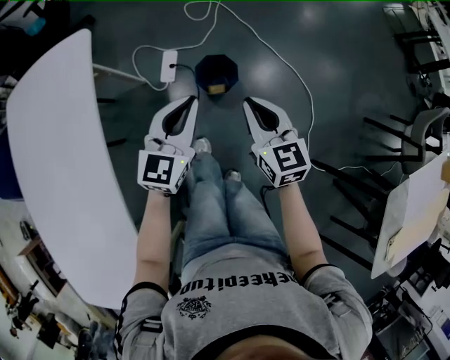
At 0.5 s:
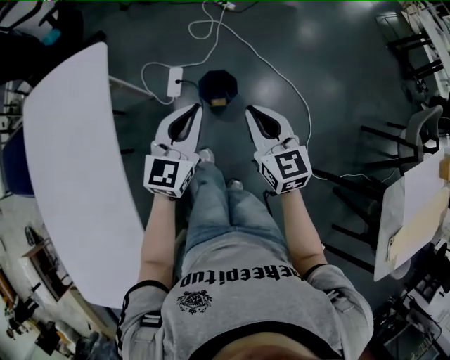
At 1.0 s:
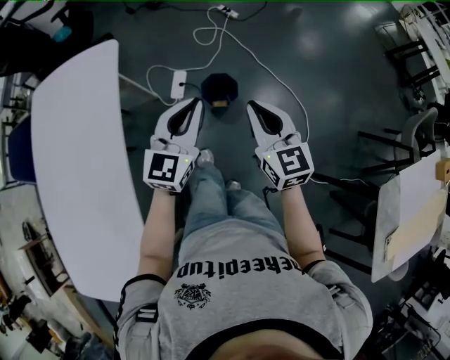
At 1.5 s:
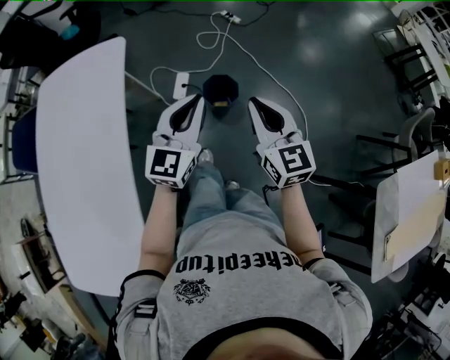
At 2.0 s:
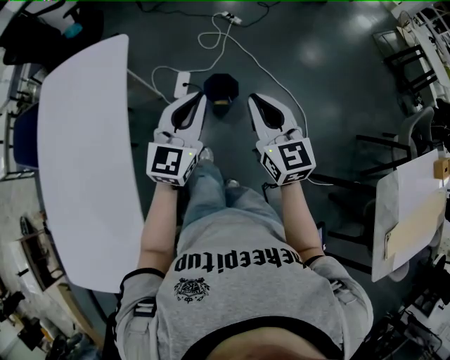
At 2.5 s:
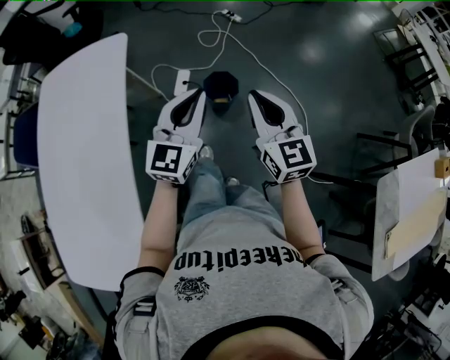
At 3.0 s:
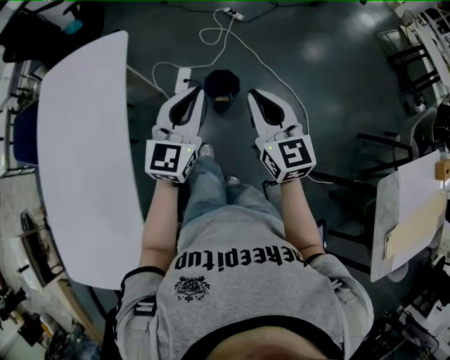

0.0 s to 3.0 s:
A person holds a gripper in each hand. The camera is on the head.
0.0 to 1.5 s: Both grippers move upward and backward, about 15 cm.
1.5 to 3.0 s: The grippers make only small movements.

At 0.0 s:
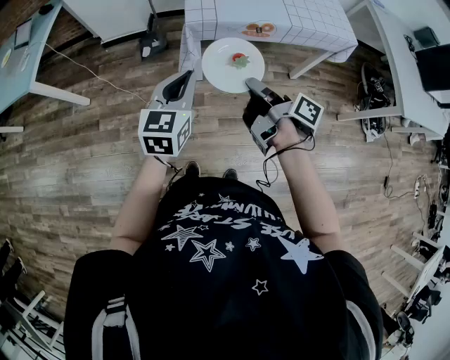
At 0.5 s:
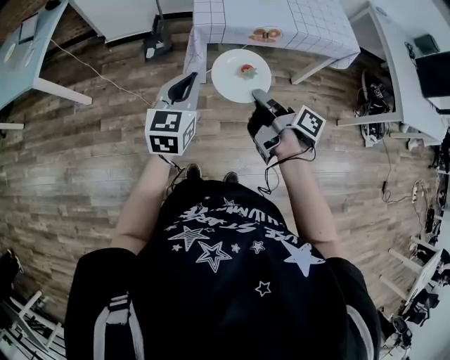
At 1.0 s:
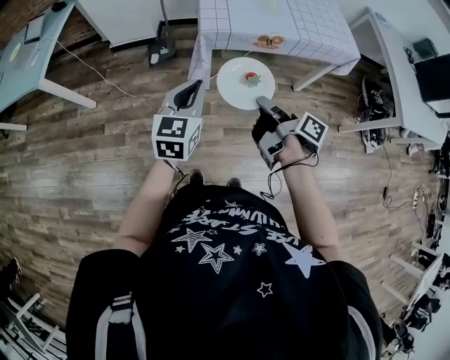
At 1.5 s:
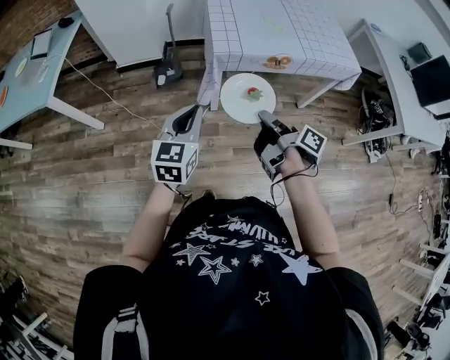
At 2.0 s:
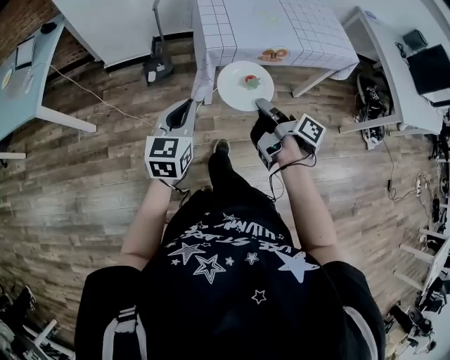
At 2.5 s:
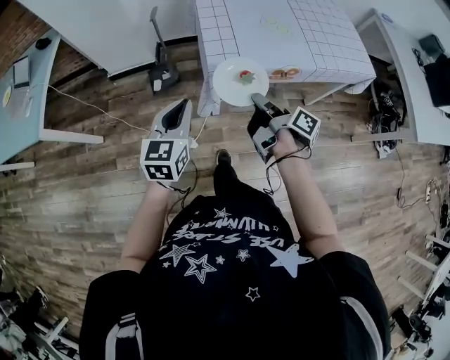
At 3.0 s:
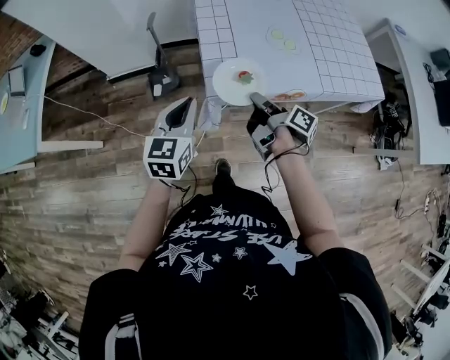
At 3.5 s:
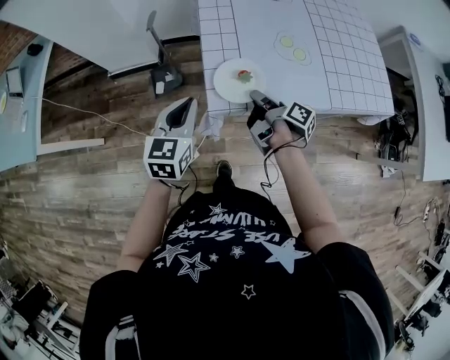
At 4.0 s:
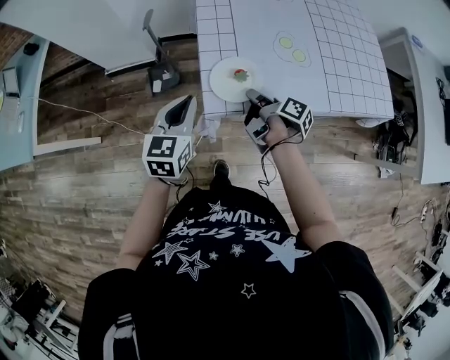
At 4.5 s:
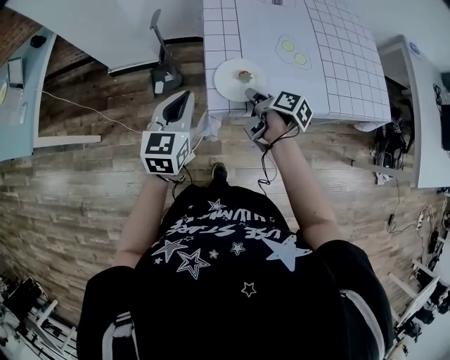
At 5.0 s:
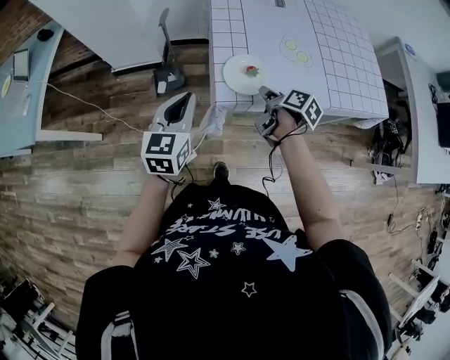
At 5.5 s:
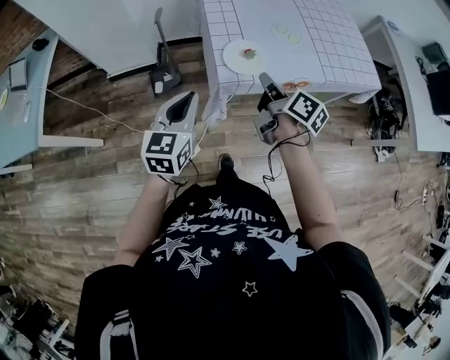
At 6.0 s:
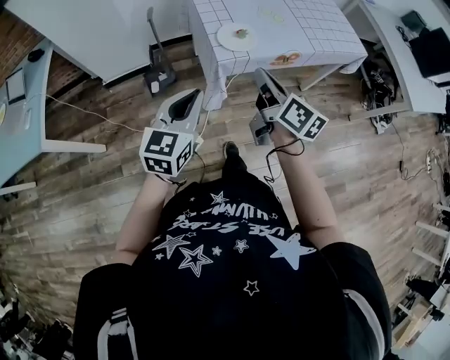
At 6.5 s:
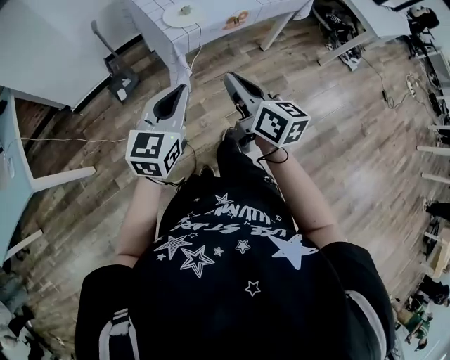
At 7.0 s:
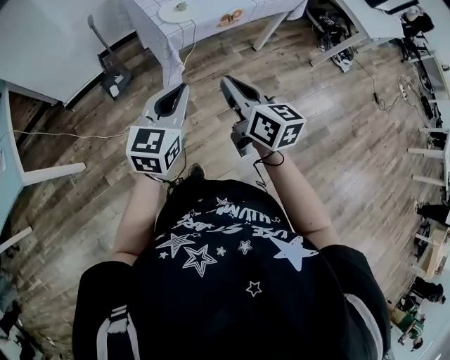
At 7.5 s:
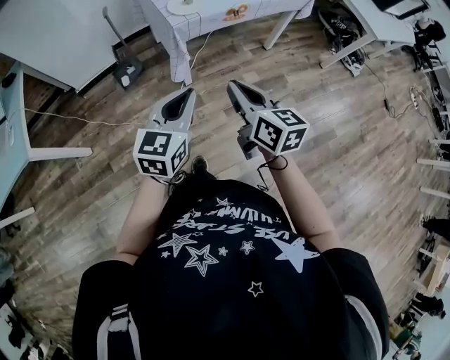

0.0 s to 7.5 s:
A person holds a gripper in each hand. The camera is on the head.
0.0 to 2.0 s: The left gripper moves some 10 cm.
2.0 to 4.0 s: The left gripper moves some 25 cm.
4.0 to 5.5 s: The left gripper shifts by some 10 cm.
5.5 to 7.5 s: The left gripper ends up roughly 25 cm from where it was, and changes its angle by some 20 degrees.

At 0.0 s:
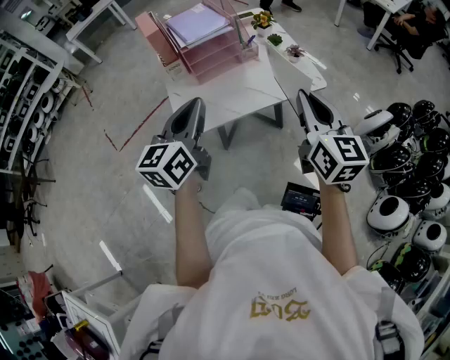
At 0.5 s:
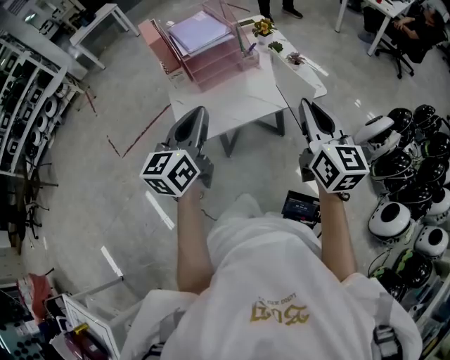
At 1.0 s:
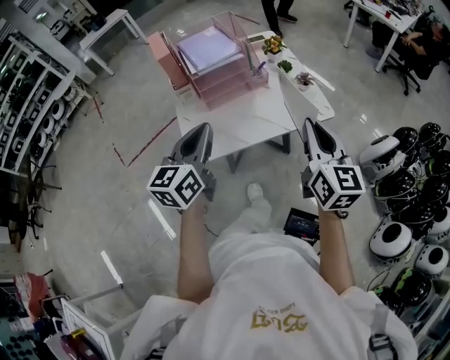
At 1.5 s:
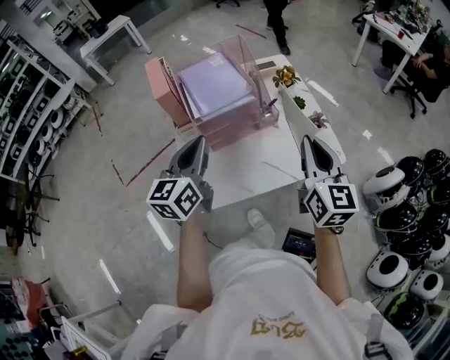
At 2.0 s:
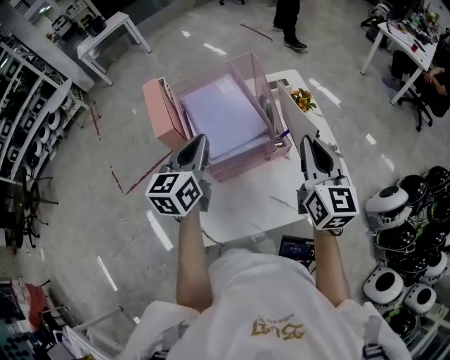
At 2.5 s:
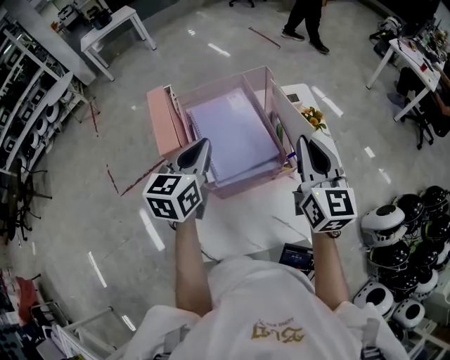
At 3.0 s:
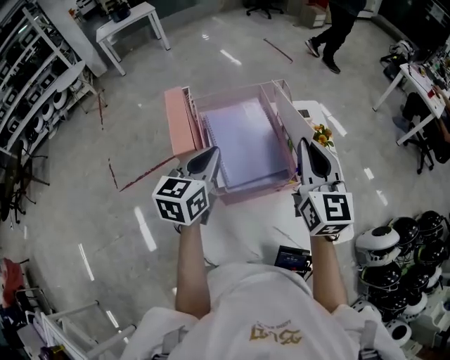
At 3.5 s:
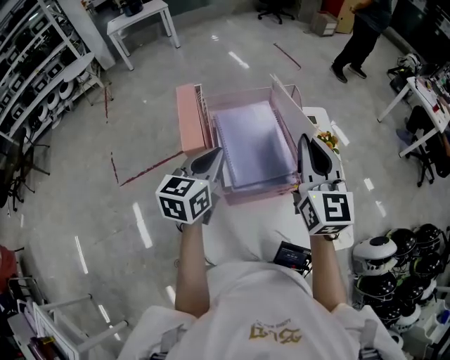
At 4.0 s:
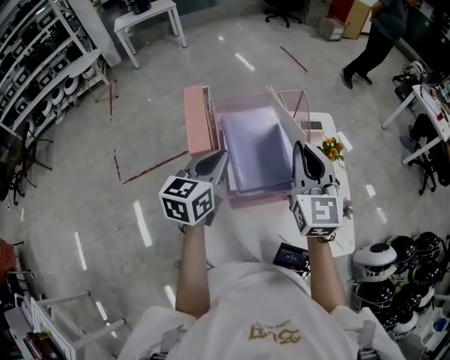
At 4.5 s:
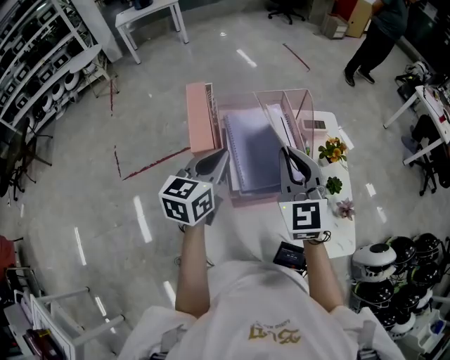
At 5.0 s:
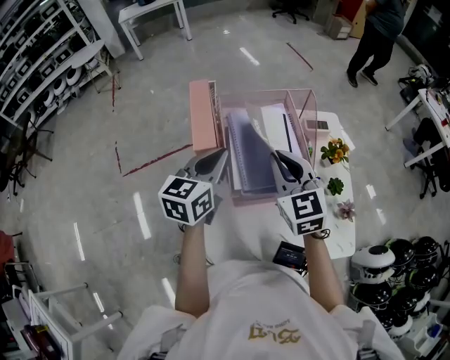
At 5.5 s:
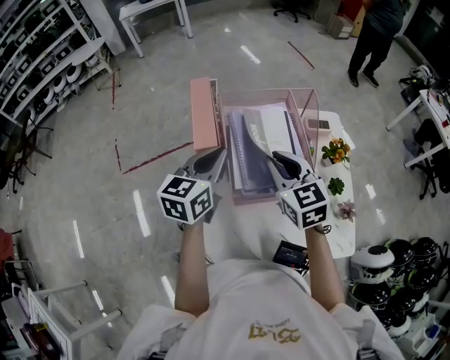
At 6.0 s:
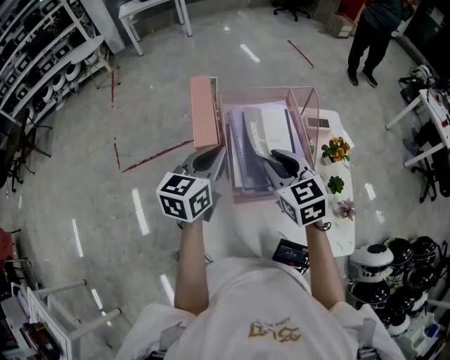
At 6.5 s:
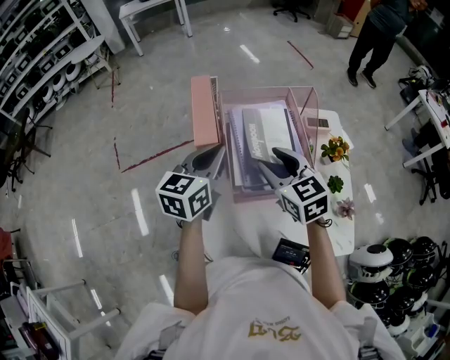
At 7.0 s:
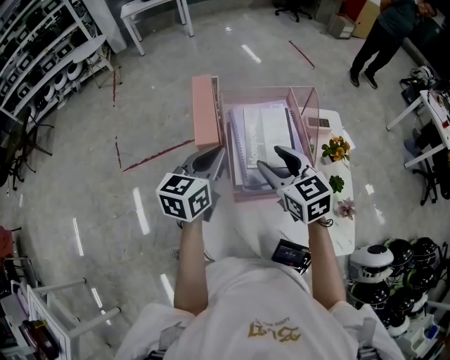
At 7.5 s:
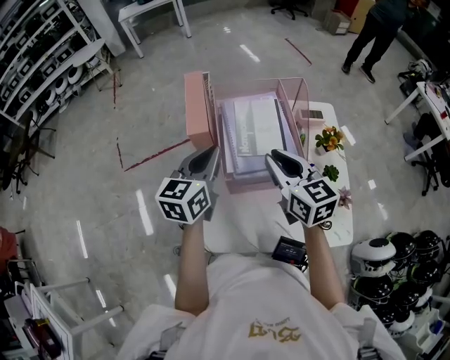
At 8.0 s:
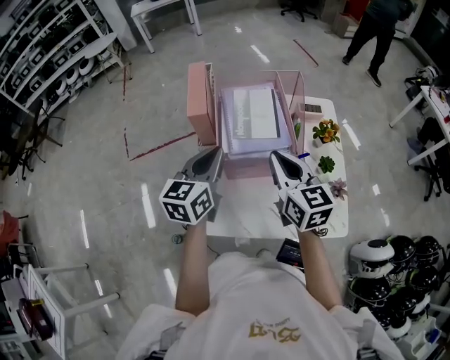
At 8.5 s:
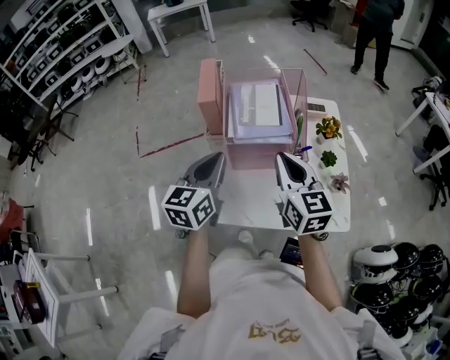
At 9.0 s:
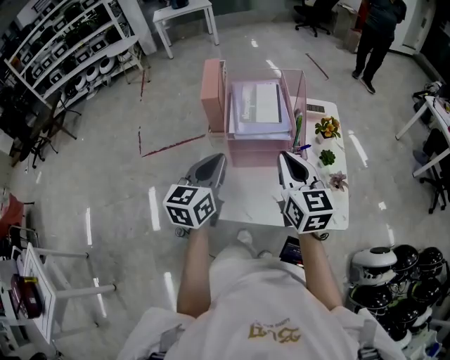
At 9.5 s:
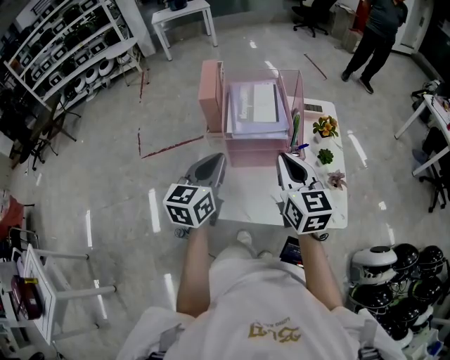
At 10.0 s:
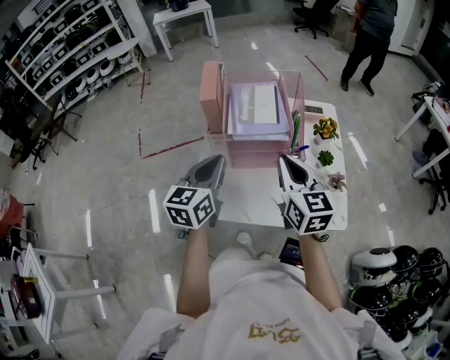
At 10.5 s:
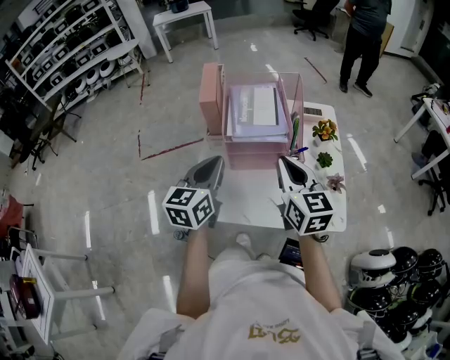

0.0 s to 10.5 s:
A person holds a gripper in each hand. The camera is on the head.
0.0 to 2.0 s: Both grippers travel together forward, approximately 35 cm.
2.0 to 4.0 s: The left gripper travels to the left by about 5 cm. Meanwhile the right gripper moves to the left and forward, roughly 20 cm, and rotates approximately 20 degrees.
4.0 to 6.5 s: The right gripper shifts some 15 cm downward and to the left, rotates some 30 degrees, and opens up.
6.5 to 8.5 s: The left gripper heads backward, covering about 20 cm. Meanwhile the right gripper travels backward and to the right by about 20 cm, turns by roughly 20 degrees, and closes up.
8.5 to 10.5 s: There are only small adjustments of the grippers.

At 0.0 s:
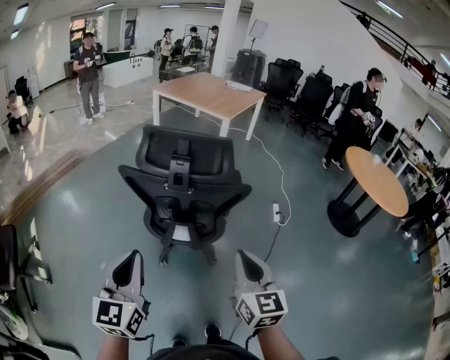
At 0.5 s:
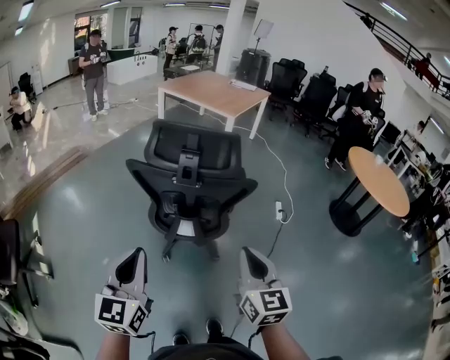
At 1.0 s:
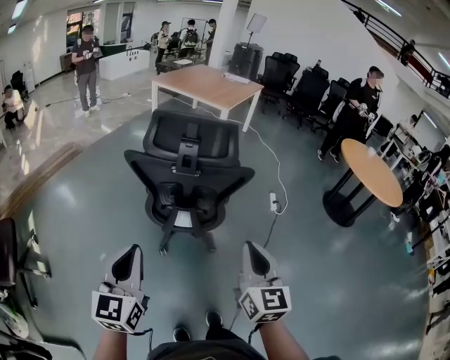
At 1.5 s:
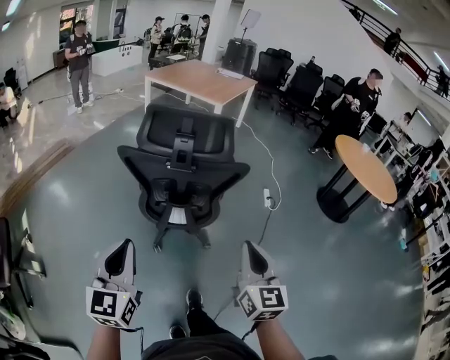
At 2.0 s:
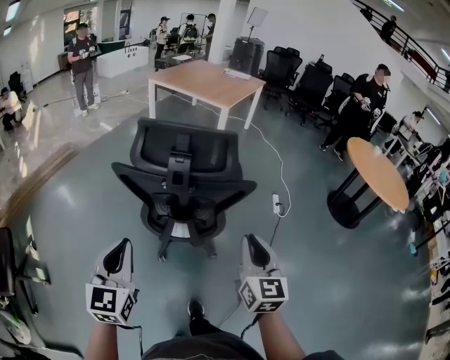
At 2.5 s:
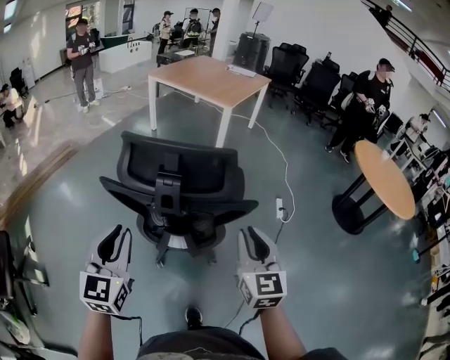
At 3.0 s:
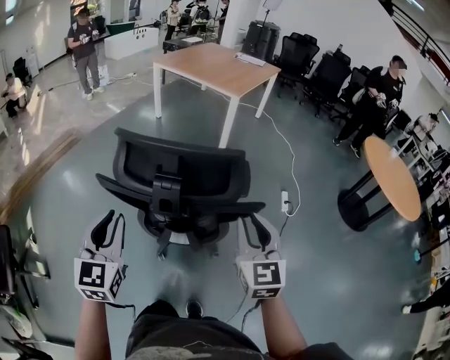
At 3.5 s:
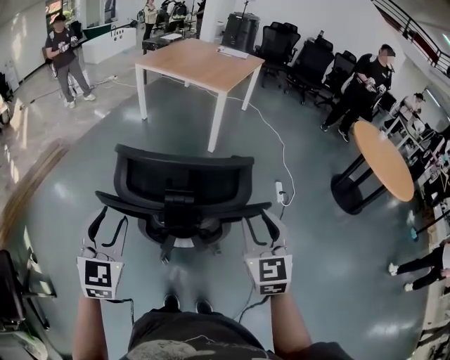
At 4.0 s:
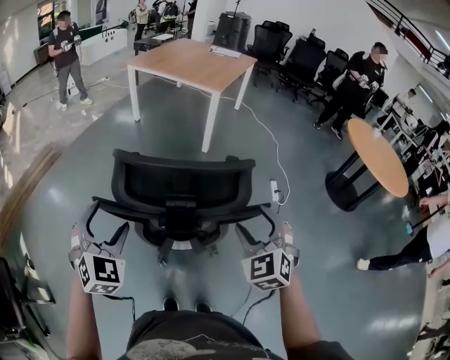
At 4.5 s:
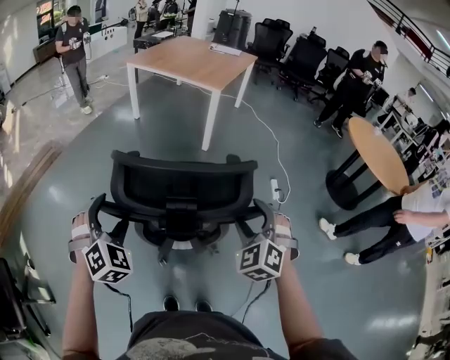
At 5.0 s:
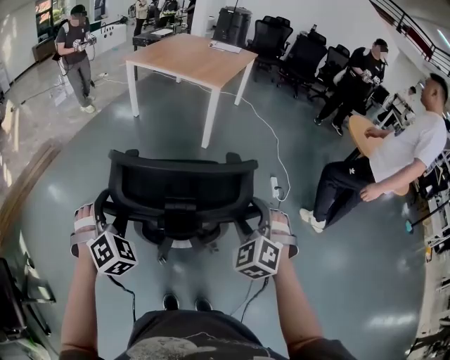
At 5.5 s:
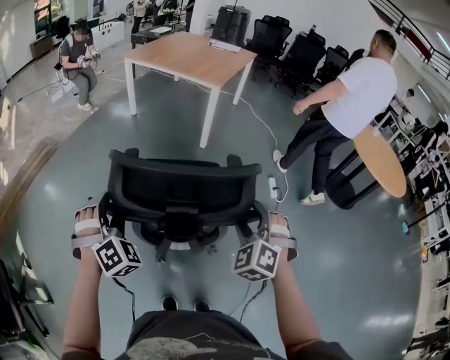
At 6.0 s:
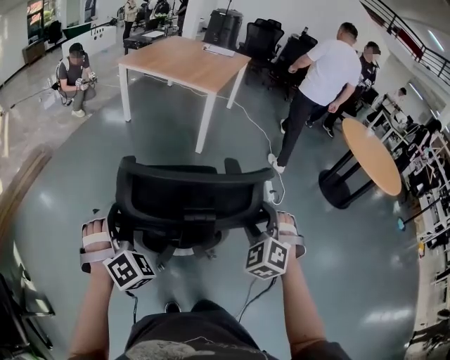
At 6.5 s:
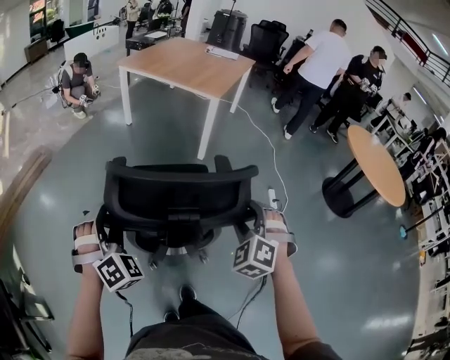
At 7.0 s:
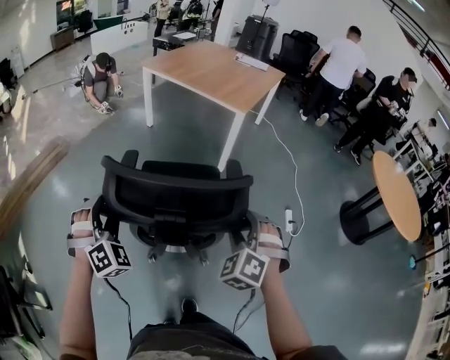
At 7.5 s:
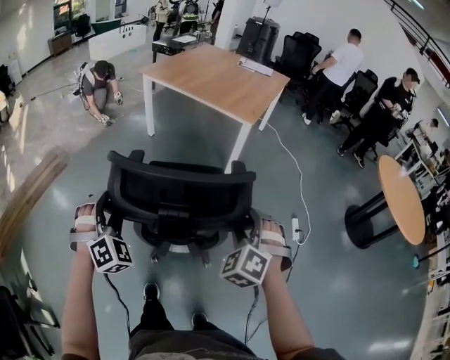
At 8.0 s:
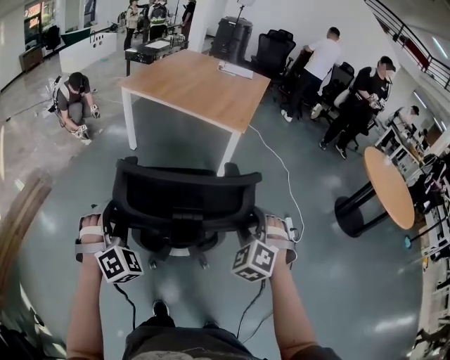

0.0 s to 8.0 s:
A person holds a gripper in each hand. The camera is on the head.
0.0 to 2.0 s: The grippers both shift forward by approximately 5 cm.
2.0 to 4.0 s: The two grippers go some 15 cm forward. The left gripper rotates approximately 40 degrees, and opens its fingers, while the right gripper twists approximately 40 degrees counterclockwise, seen from behind, and opens.
4.0 to 6.0 s: Both grippers travel together forward, approximately 5 cm. The right gripper rotates approximately 20 degrees; the left gripper turns by approximately 30 degrees.
6.0 to 8.0 s: Both grippers move forward, about 35 cm.
